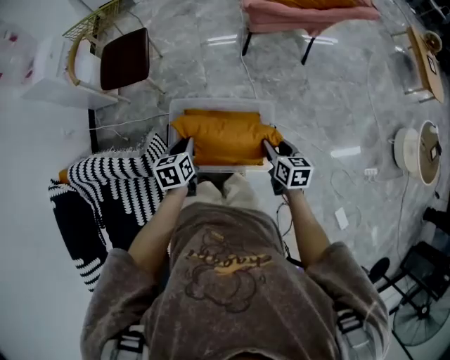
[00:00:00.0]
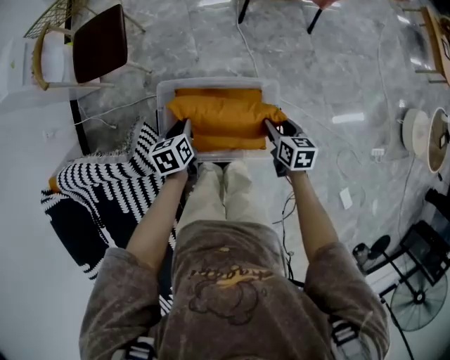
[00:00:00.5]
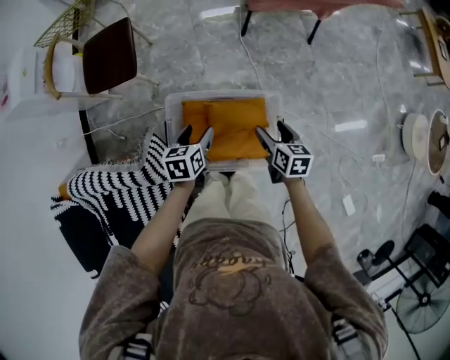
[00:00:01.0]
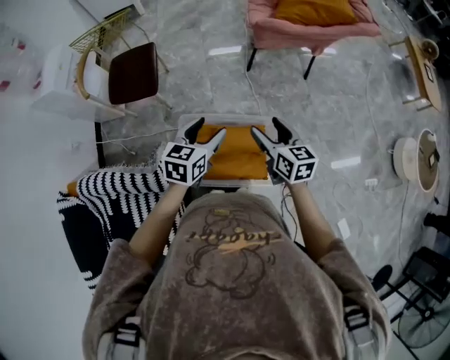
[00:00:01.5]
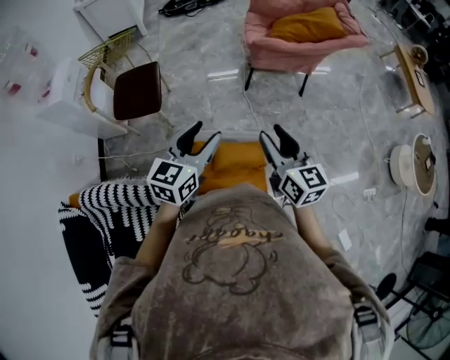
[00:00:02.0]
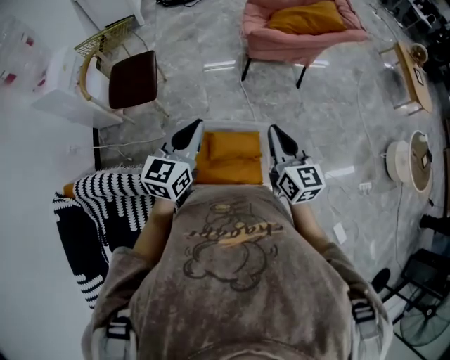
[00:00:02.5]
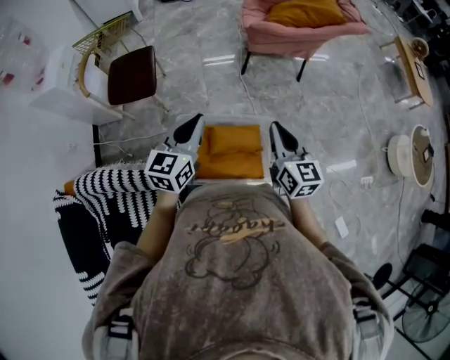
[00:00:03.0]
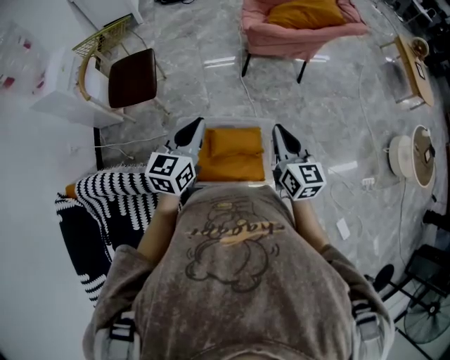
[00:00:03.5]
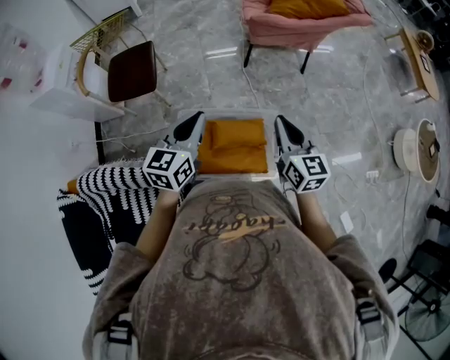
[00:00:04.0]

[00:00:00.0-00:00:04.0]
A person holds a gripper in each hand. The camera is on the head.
00:00:00.0 to 00:00:02.0: The right gripper is displaced upward and to the left by about 30 cm, and angles its fingers upward, by approximately 30 degrees. The left gripper is displaced upward by roughly 25 cm, angles its fingers upward, by roughly 30 degrees, and opens up.
00:00:02.0 to 00:00:04.0: The left gripper closes up; the right gripper moves downward and to the right, some 10 cm, and closes.

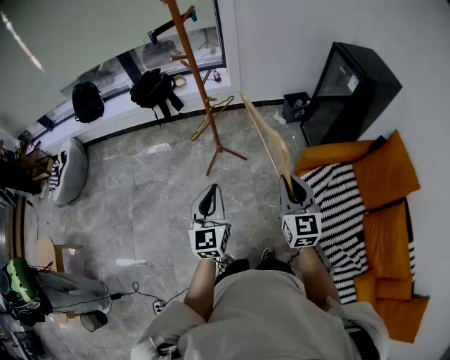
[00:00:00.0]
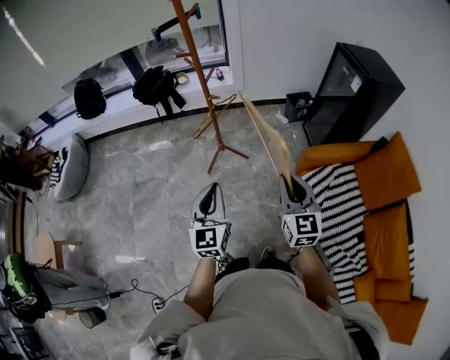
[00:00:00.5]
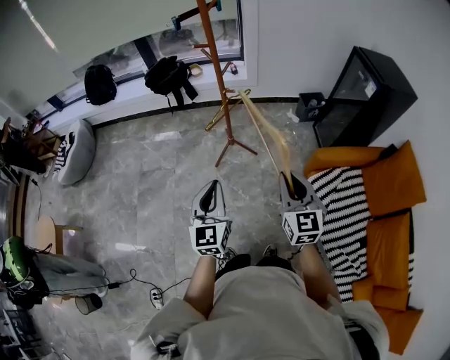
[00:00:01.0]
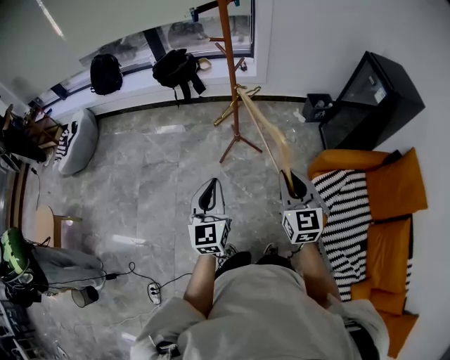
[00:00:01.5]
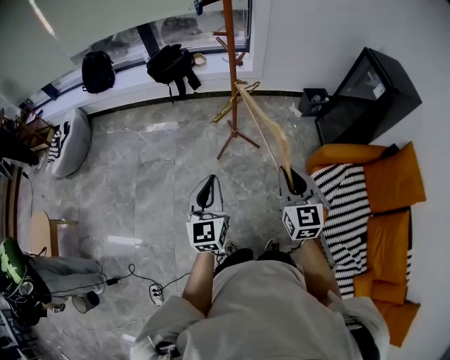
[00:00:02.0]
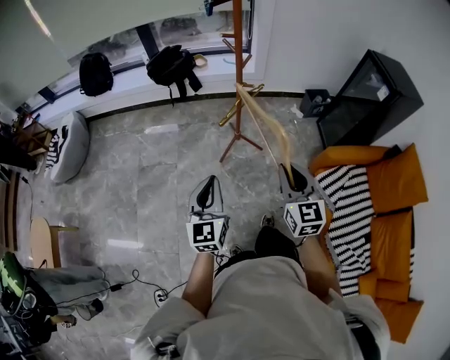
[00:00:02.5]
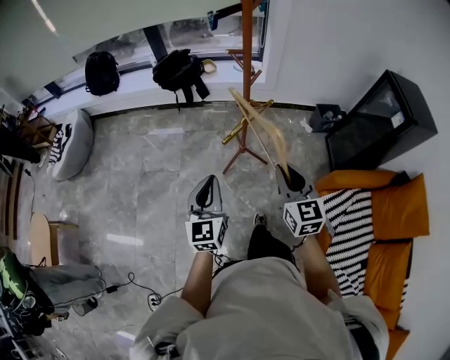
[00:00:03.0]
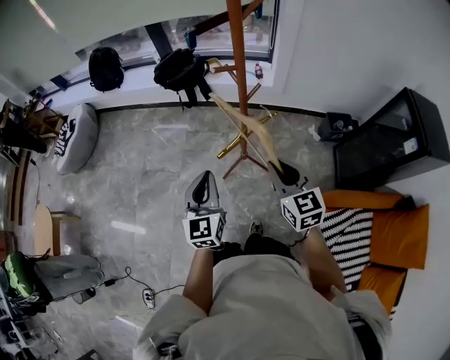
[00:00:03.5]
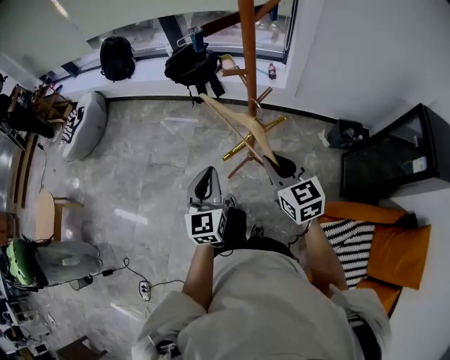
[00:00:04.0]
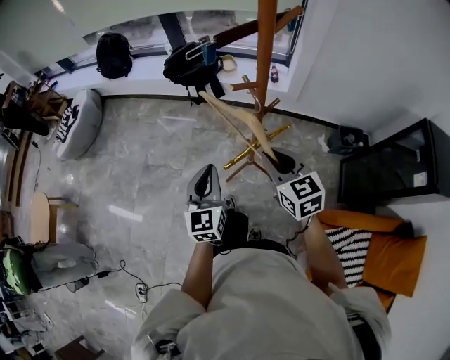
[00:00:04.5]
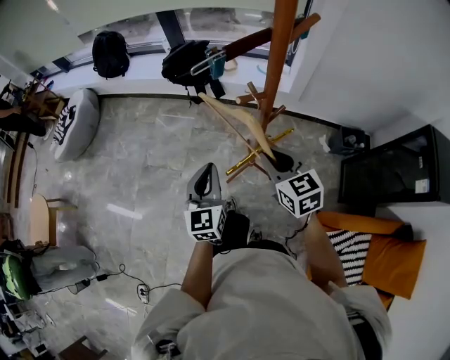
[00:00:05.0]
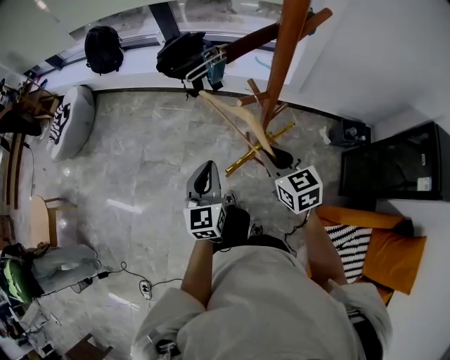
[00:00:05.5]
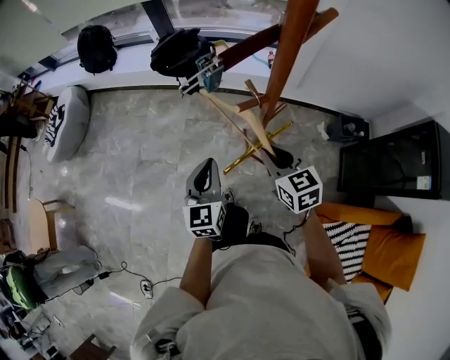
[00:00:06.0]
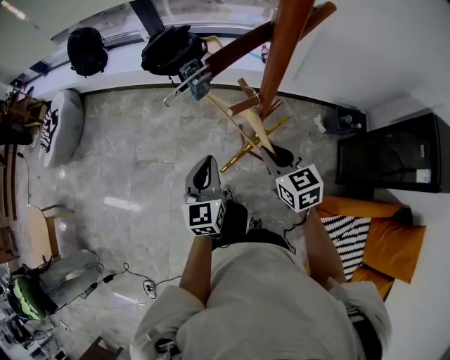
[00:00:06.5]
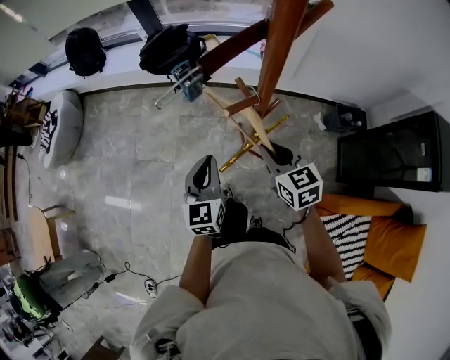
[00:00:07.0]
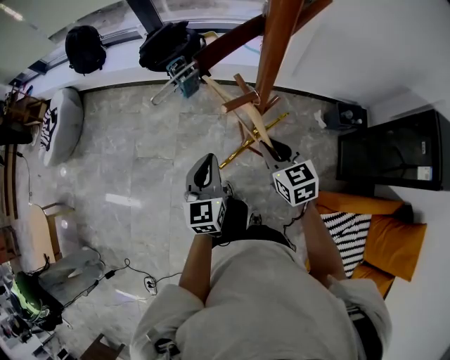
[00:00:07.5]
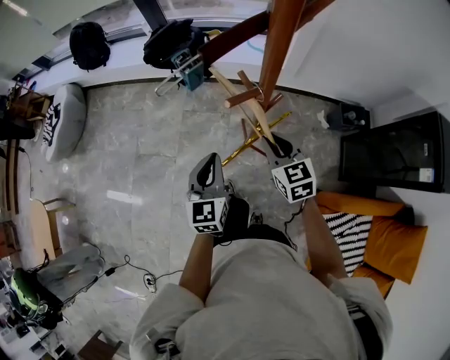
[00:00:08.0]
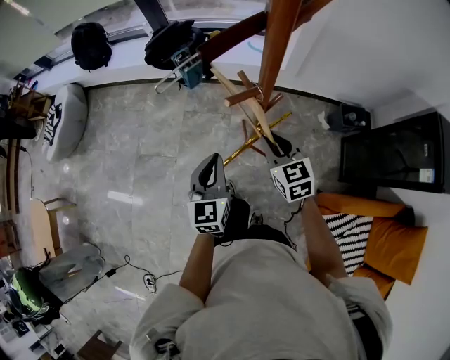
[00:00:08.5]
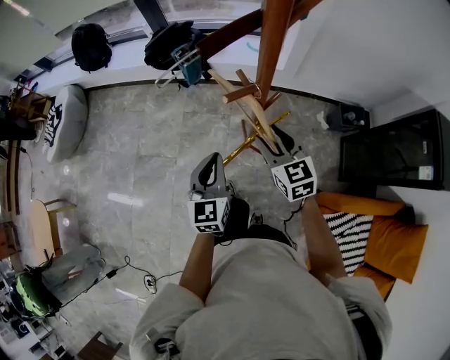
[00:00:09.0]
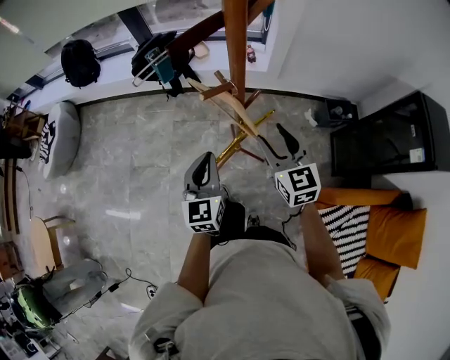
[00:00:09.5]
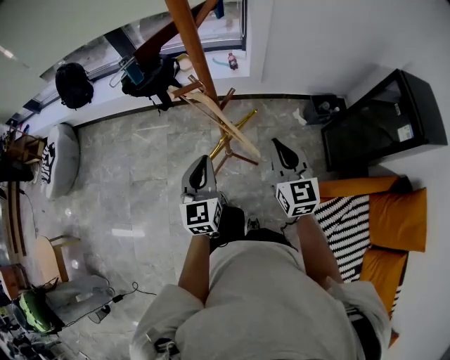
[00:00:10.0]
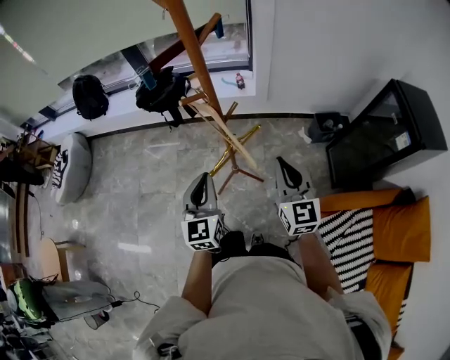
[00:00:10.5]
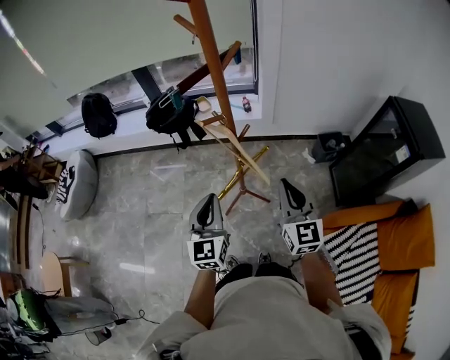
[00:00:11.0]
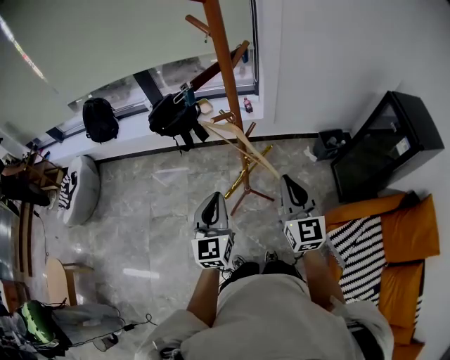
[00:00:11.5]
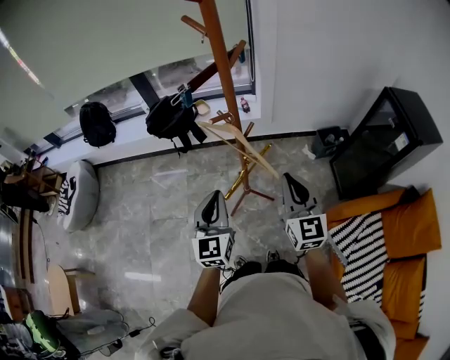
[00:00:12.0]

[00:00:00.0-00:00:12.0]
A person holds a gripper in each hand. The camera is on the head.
00:00:00.0 to 00:00:02.0: Both grippers move to the left, some 15 cm.
00:00:02.0 to 00:00:04.0: The grippers both shift forward by some 35 cm. The right gripper changes its angle by roughly 30 degrees.
00:00:04.0 to 00:00:06.0: The left gripper goes roughly 15 cm forward. Meanwhile the right gripper travels forward and downward by approximately 15 cm.
00:00:06.0 to 00:00:08.0: The grippers make only small movements.
00:00:08.0 to 00:00:10.0: The left gripper shifts some 10 cm to the right and backward, while the right gripper is displaced backward, to the right and upward by approximately 20 cm, changes its angle by approximately 30 degrees, and opens, then closes again.
00:00:10.0 to 00:00:12.0: The right gripper moves backward, upward and to the left, some 15 cm. Meanwhile the left gripper heads upward, backward and to the left, covering some 10 cm.

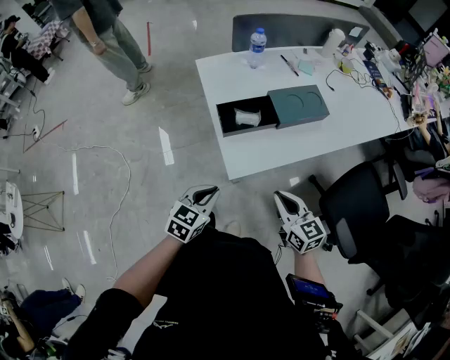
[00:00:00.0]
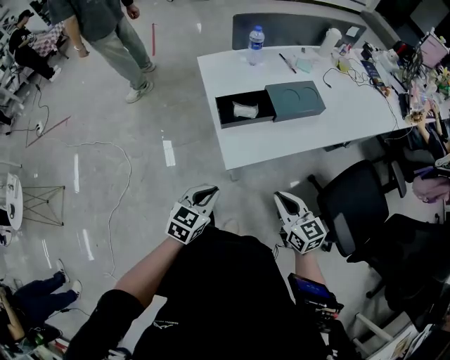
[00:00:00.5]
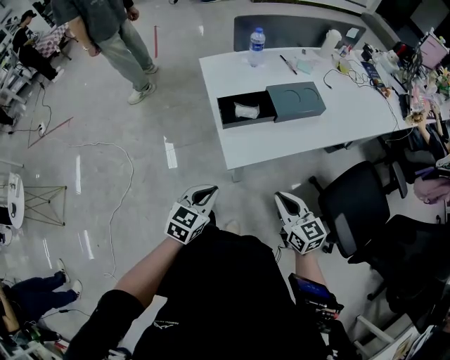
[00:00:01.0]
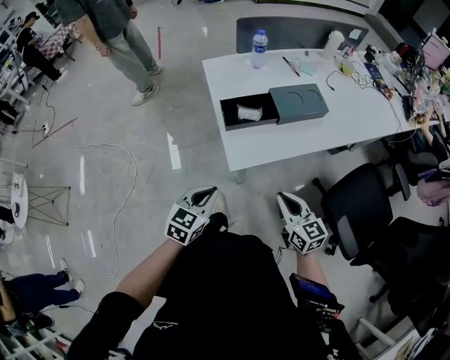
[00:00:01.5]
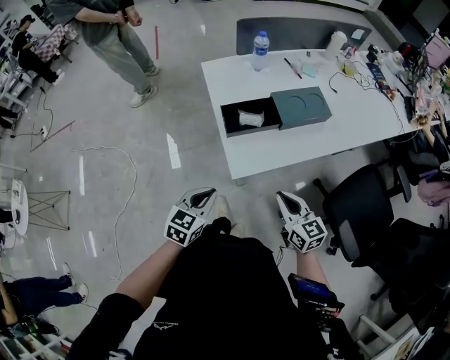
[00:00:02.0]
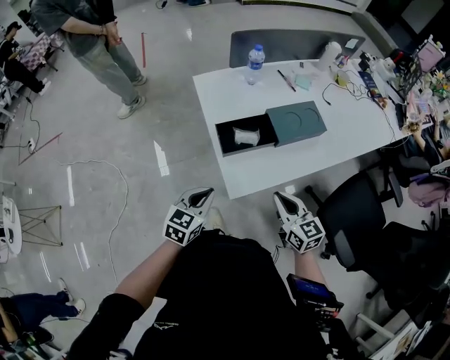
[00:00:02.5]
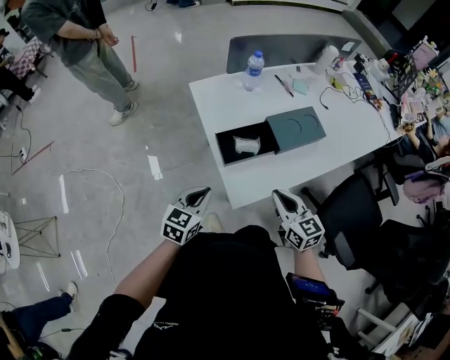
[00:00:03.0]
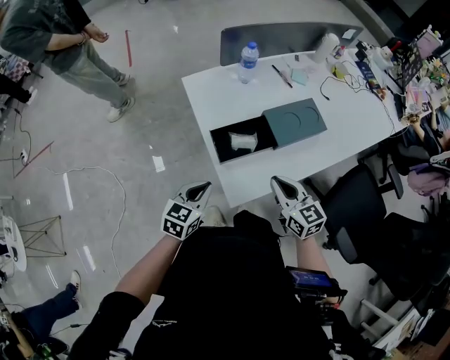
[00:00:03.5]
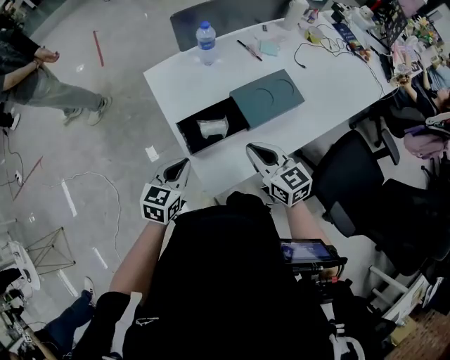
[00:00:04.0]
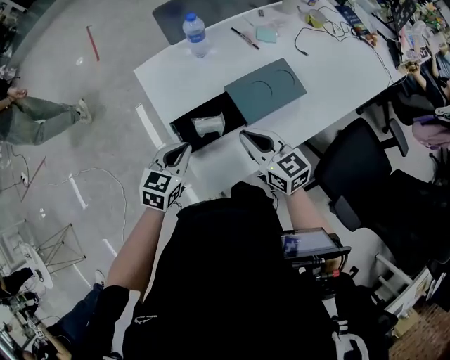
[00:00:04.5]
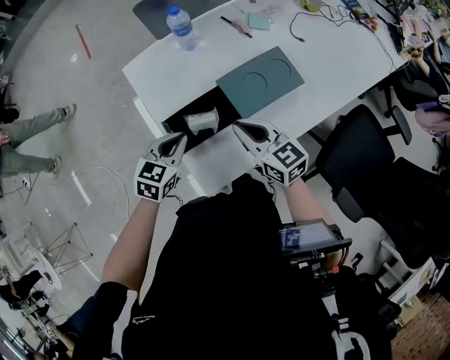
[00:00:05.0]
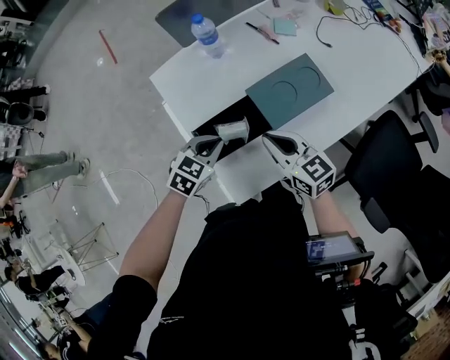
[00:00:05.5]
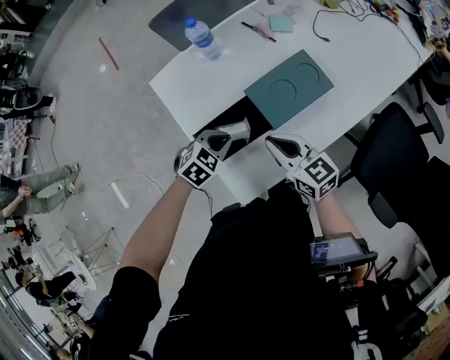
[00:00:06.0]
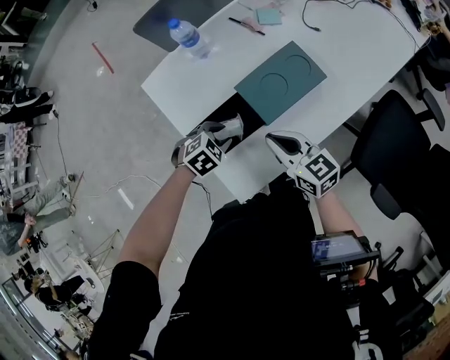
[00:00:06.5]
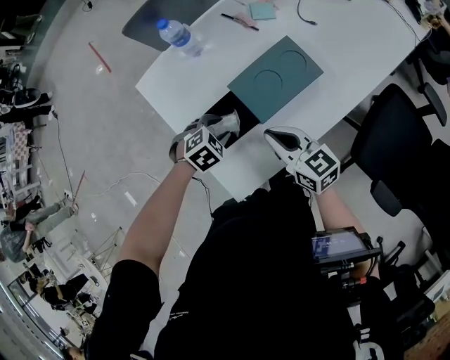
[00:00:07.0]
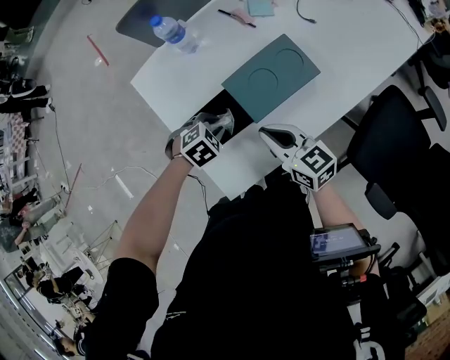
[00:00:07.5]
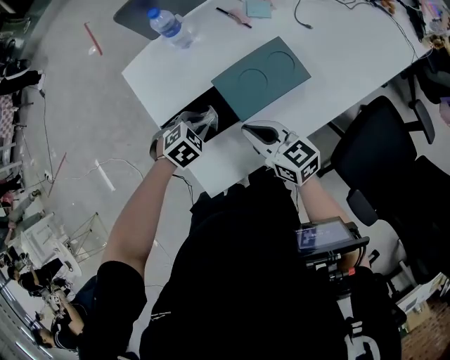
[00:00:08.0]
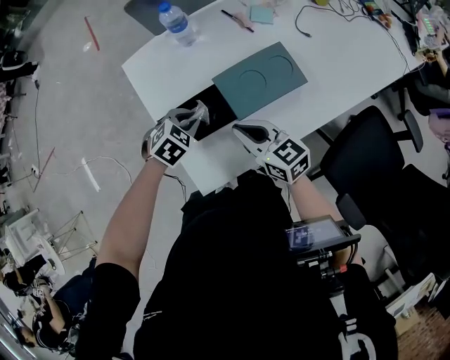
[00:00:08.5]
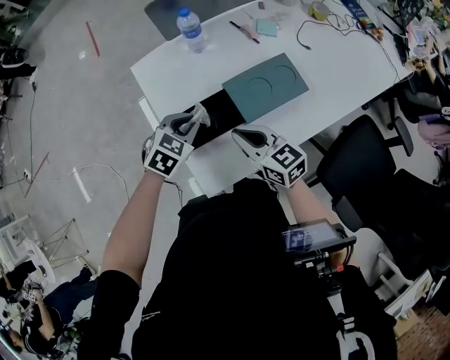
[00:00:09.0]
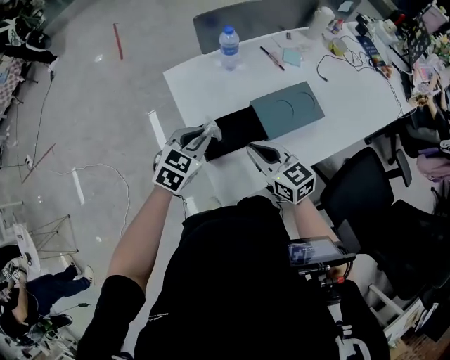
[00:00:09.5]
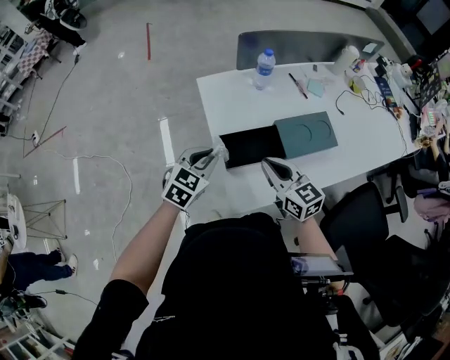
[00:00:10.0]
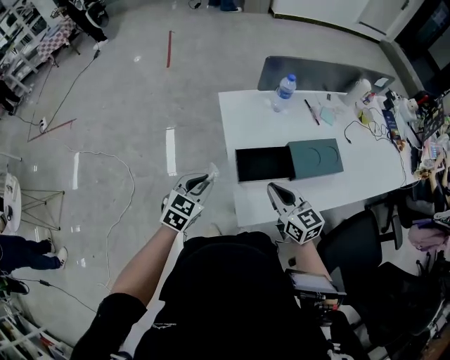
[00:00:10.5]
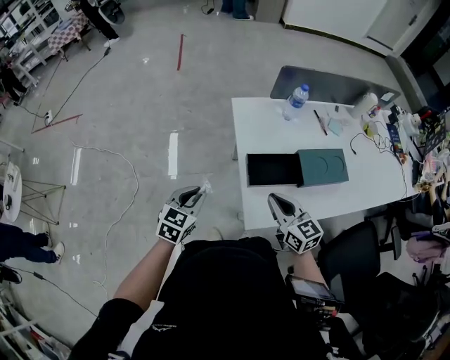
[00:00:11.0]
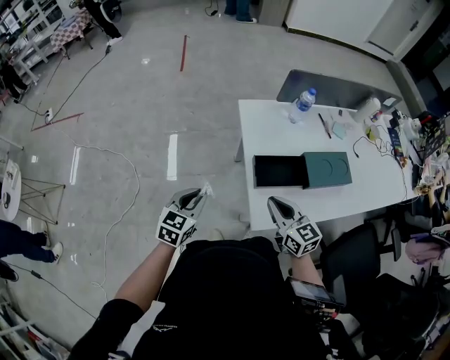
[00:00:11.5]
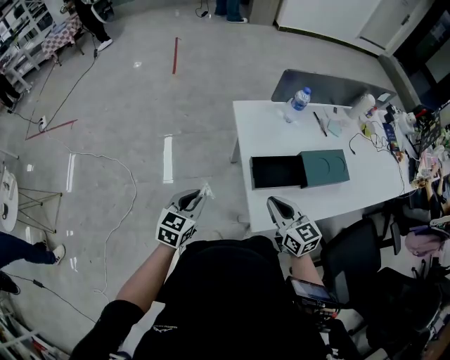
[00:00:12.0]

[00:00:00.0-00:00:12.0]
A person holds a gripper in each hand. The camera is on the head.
00:00:00.0 to 00:00:02.0: The grippers stay close to where they were, moving slightly.
00:00:02.0 to 00:00:04.0: Both grippers move forward, approximately 20 cm.
00:00:04.0 to 00:00:06.0: The left gripper goes about 15 cm forward, downward and to the right, and rotates about 40 degrees, while the right gripper moves roughly 5 cm.
00:00:06.0 to 00:00:08.0: The left gripper opens, then closes again.
00:00:08.0 to 00:00:10.0: The right gripper is displaced to the left and upward by about 15 cm. Meanwhile the left gripper moves upward and to the left, about 20 cm, and tilts its fingers roughly 40 degrees upward.
00:00:10.0 to 00:00:12.0: The right gripper heads to the left and backward, covering approximately 10 cm. The left gripper heads to the left and backward, covering approximately 20 cm, and swivels some 20 degrees.
